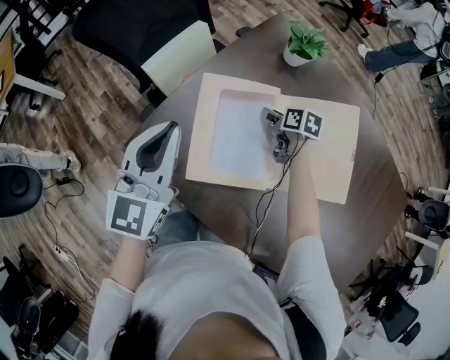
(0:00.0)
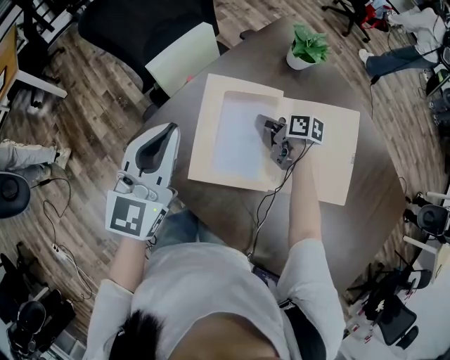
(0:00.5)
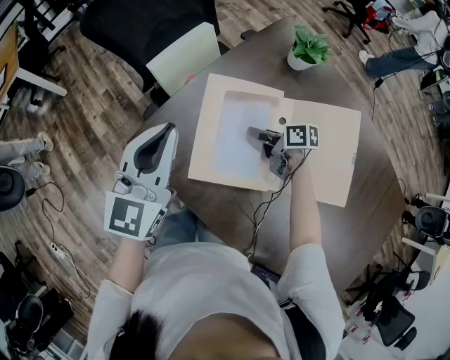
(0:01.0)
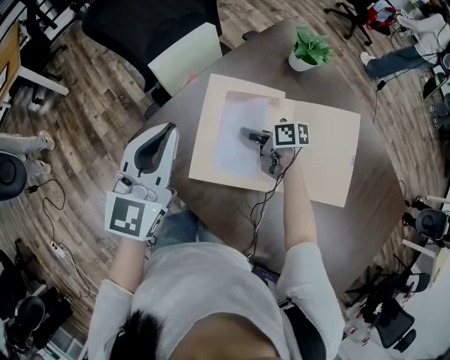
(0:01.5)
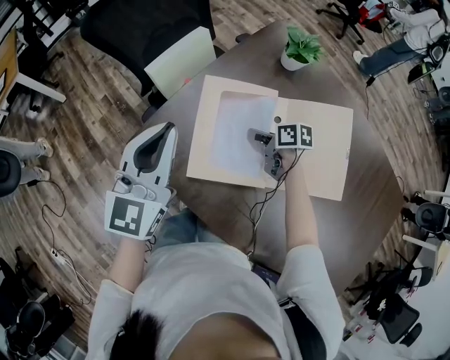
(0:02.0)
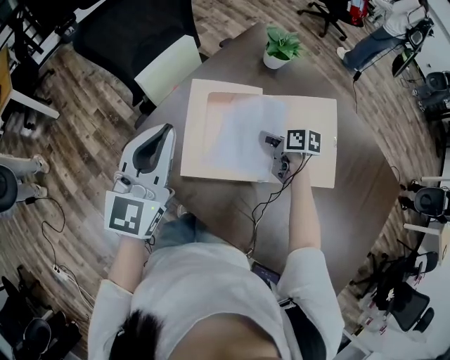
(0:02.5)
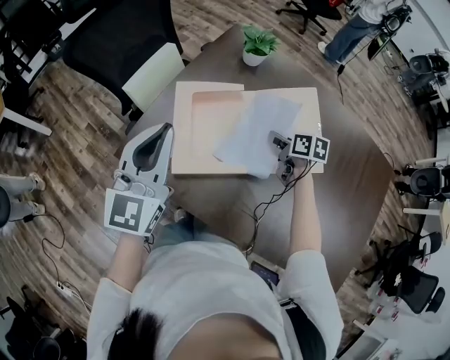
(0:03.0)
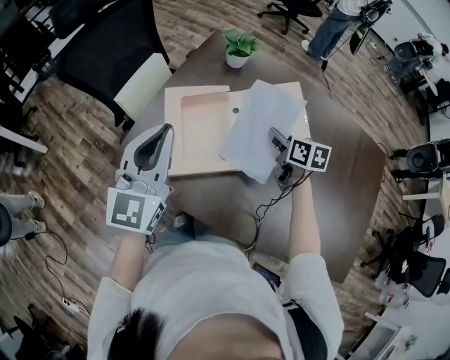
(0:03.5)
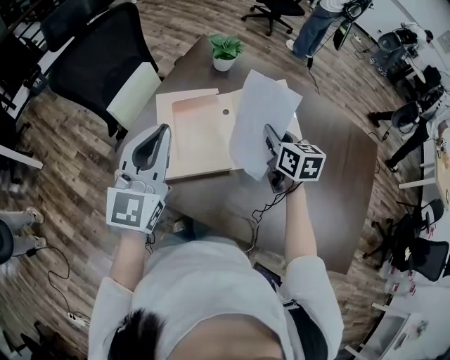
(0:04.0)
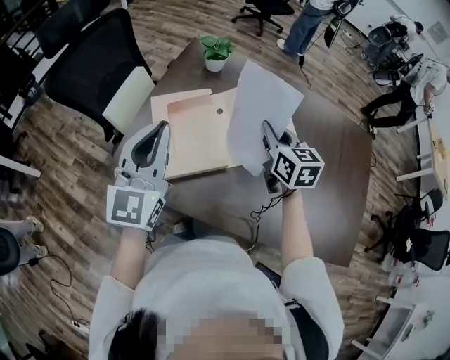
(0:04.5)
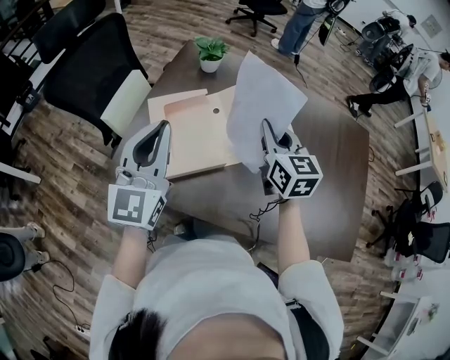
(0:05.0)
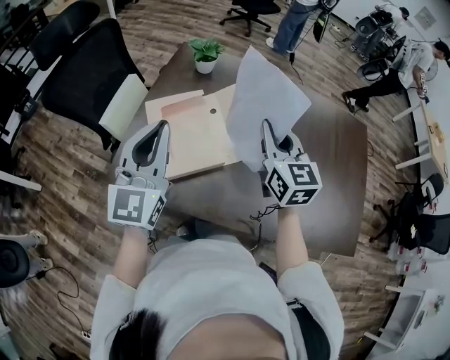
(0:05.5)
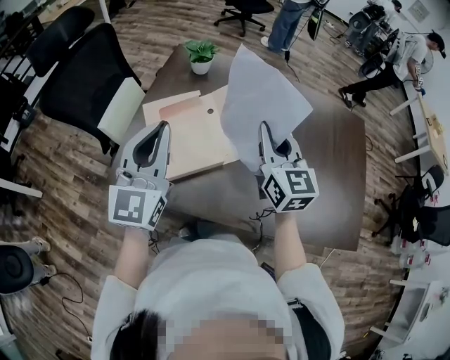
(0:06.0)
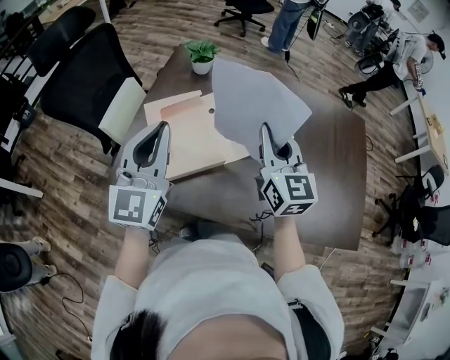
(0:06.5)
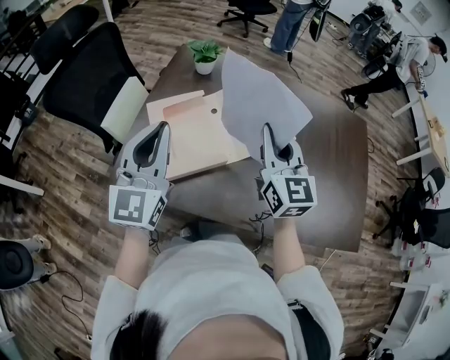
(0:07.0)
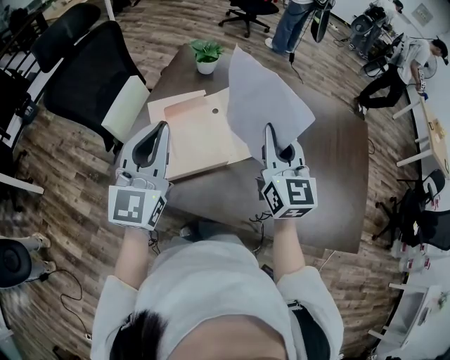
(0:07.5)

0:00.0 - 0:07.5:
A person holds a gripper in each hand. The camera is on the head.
0:00.0 - 0:02.0: The right gripper moves to the left and backward, about 10 cm, changes its angle by roughly 20 degrees, and closes its fingers.
0:02.0 - 0:04.0: The right gripper heads upward, covering about 20 cm, and swivels roughly 50 degrees; the left gripper shifts by approximately 10 cm.
0:04.0 - 0:05.5: The right gripper heads upward and backward, covering approximately 15 cm, and swivels roughly 30 degrees.
0:05.5 - 0:07.5: The grippers make only small movements.

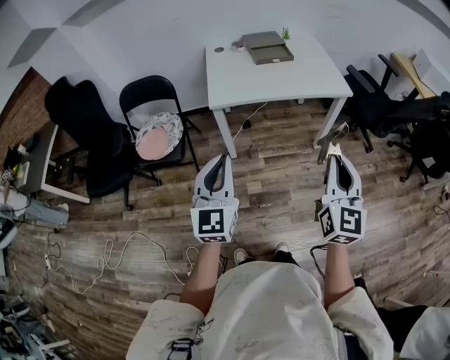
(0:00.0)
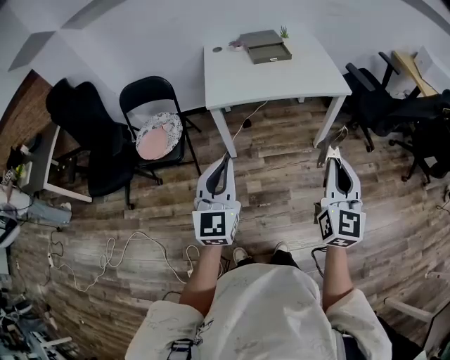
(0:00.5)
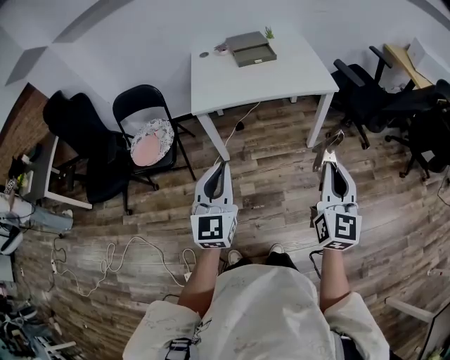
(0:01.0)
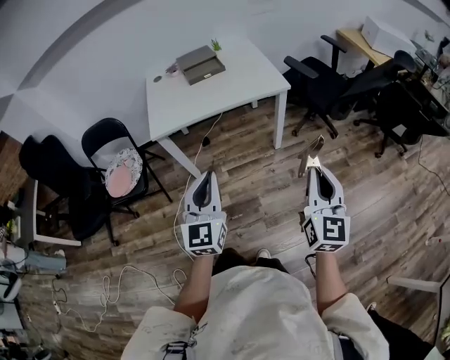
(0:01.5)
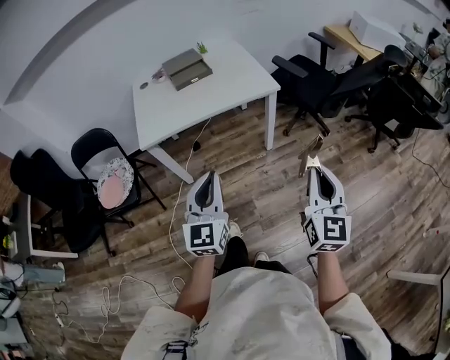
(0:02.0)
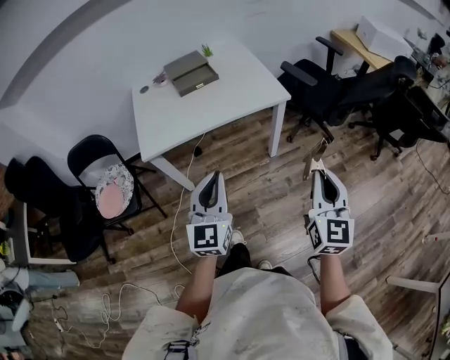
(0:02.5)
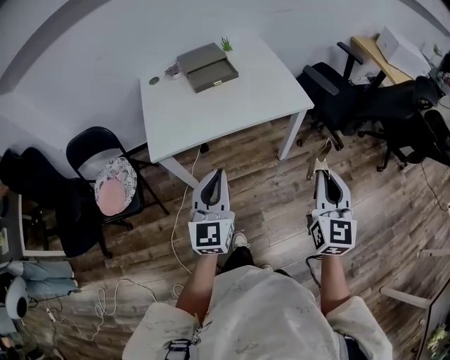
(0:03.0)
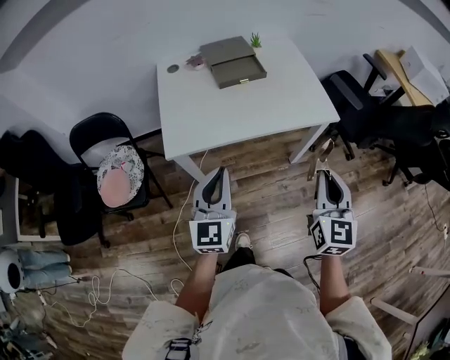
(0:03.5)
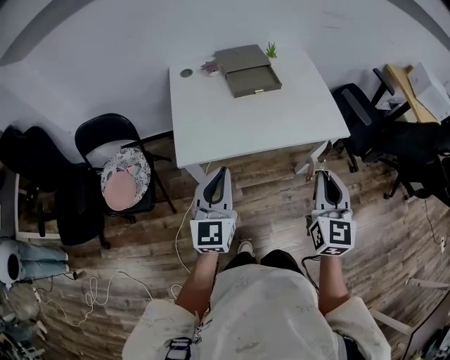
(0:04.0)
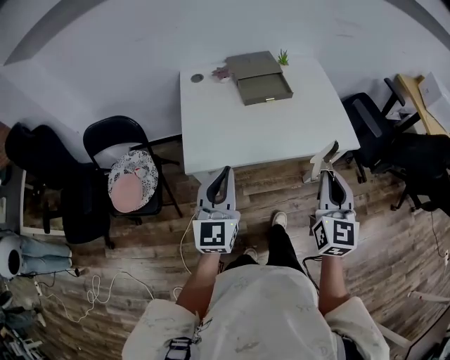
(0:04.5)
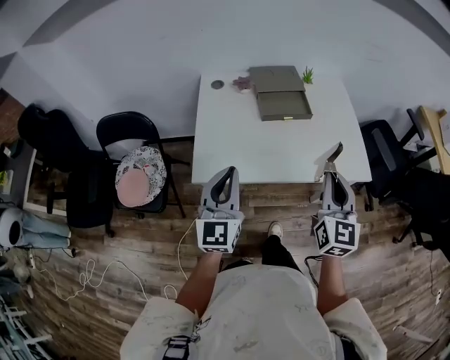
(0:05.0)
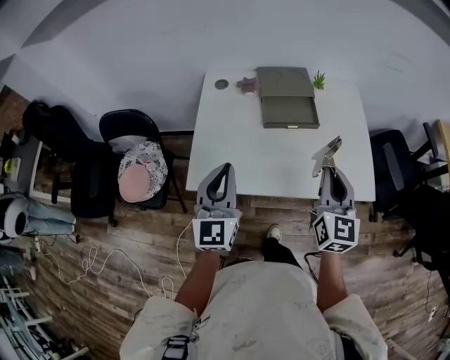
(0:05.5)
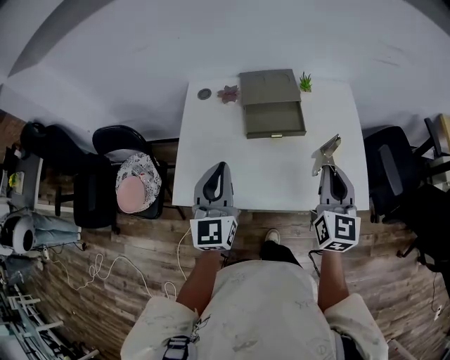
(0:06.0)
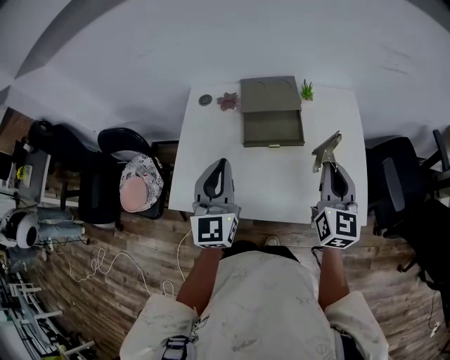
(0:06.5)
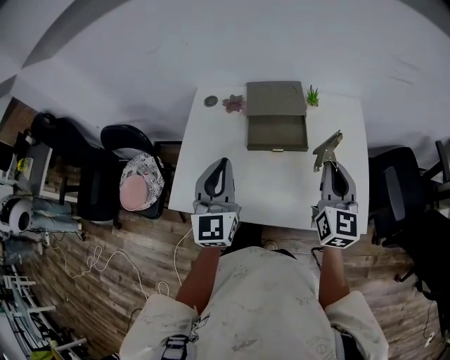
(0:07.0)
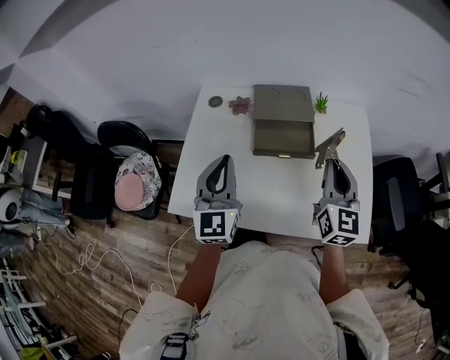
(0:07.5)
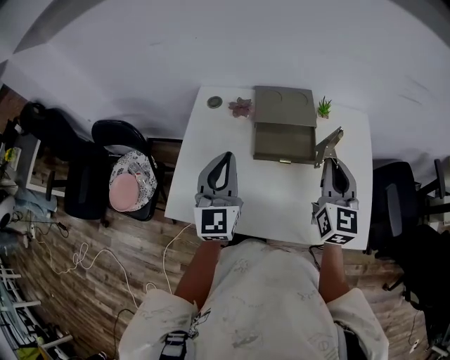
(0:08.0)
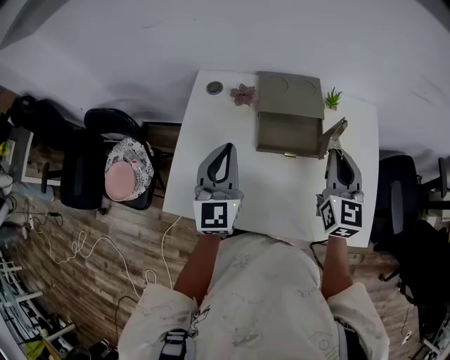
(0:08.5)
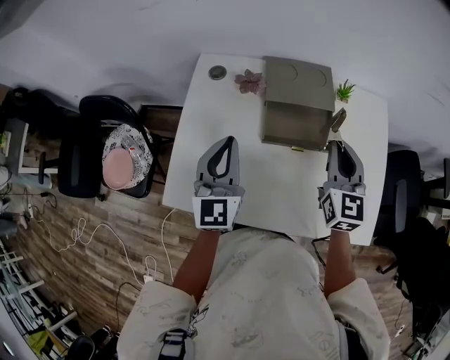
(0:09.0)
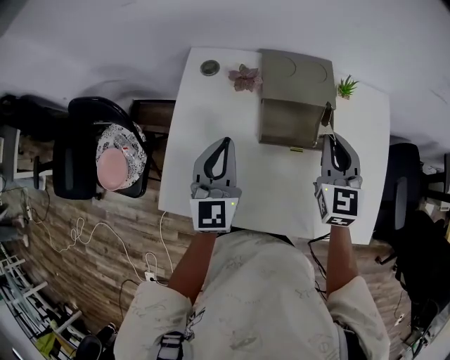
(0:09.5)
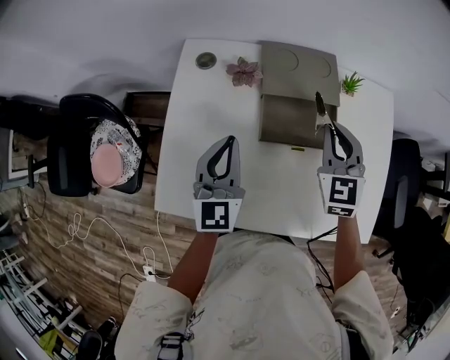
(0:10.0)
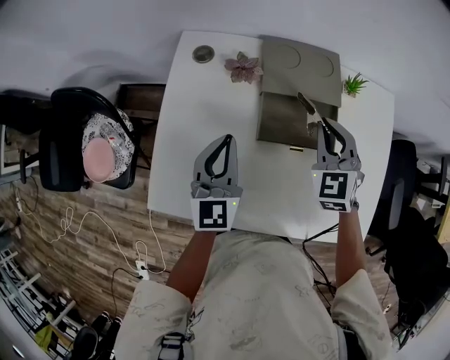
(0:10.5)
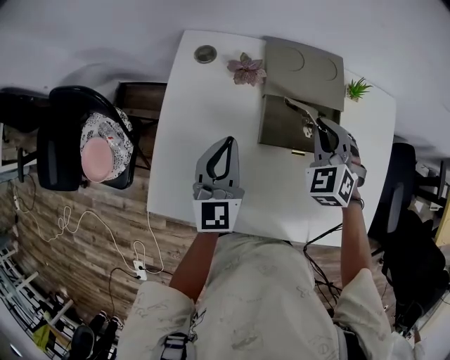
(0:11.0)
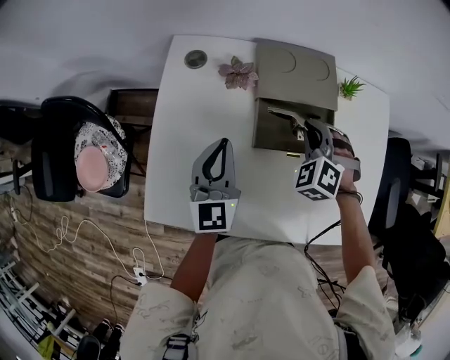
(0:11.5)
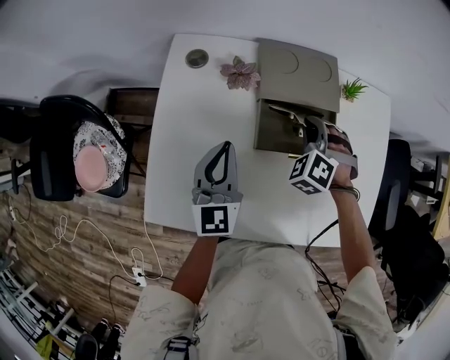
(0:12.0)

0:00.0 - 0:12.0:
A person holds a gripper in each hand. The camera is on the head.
0:00.0 - 0:02.0: The grippers both shift to the right by about 25 cm.
0:02.0 - 0:04.0: The right gripper goes about 40 cm forward and to the left, while the left gripper shifts about 35 cm to the left and forward.
0:04.0 - 0:06.0: The two grippers go approximately 25 cm forward.
0:06.0 - 0:08.0: The grippers both shift forward by about 10 cm.
0:08.0 - 0:10.0: The left gripper shifts about 10 cm downward and forward. Meanwhile the right gripper heads forward, downward and to the left, covering approximately 15 cm, and changes its angle by roughly 30 degrees.
0:10.0 - 0:12.0: The right gripper heads downward, covering about 10 cm, and rolls counterclockwise, seen from behind, by roughly 50 degrees. Meanwhile the left gripper moves about 5 cm.

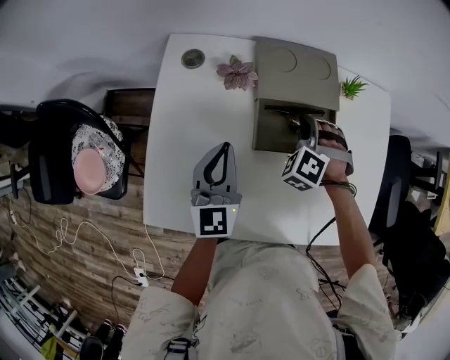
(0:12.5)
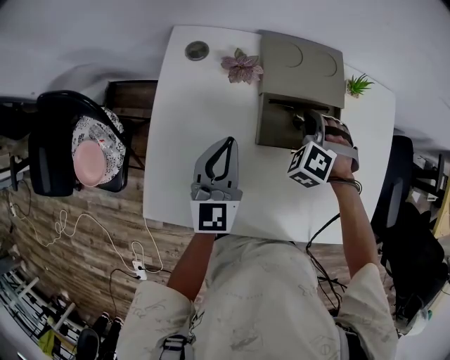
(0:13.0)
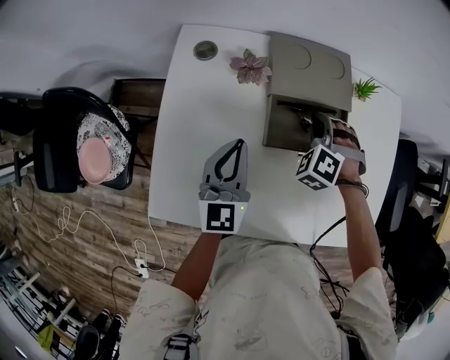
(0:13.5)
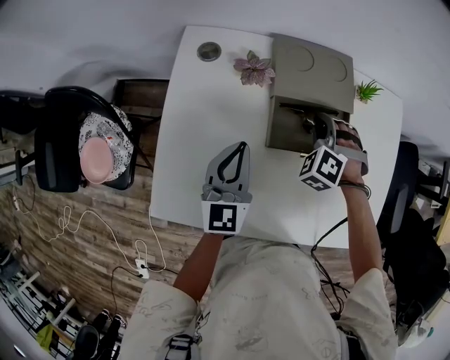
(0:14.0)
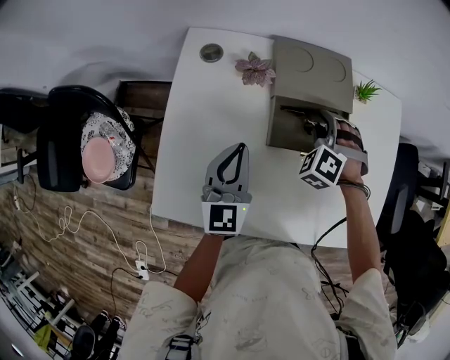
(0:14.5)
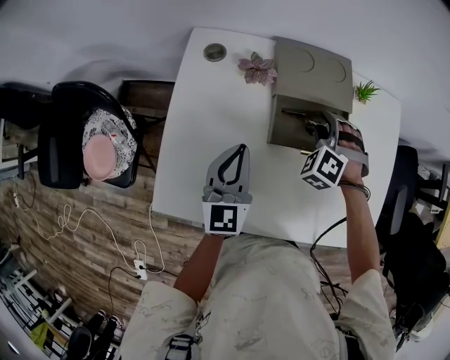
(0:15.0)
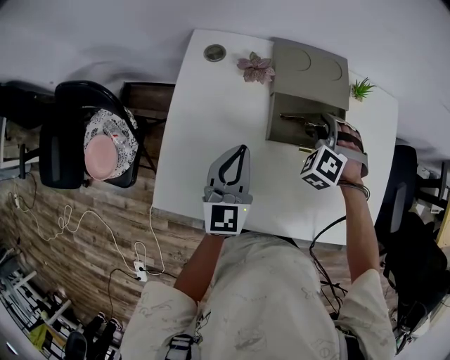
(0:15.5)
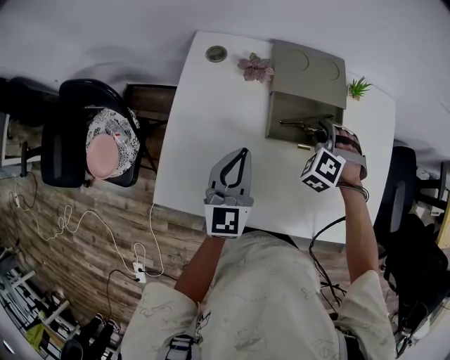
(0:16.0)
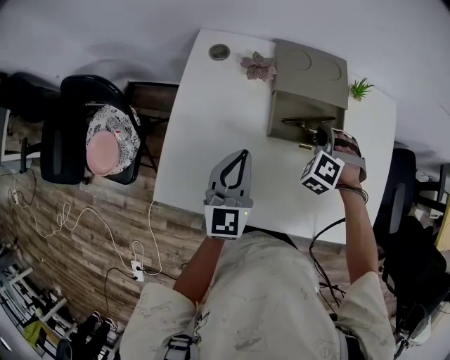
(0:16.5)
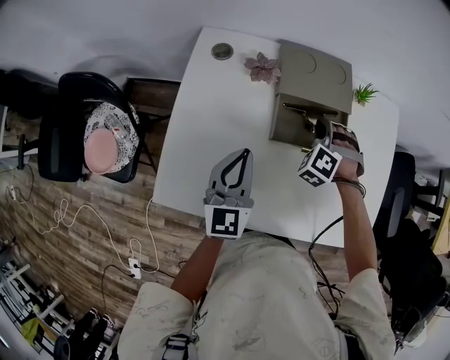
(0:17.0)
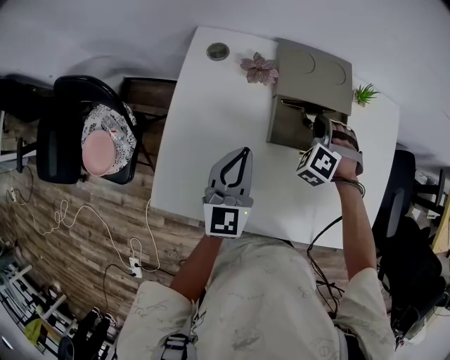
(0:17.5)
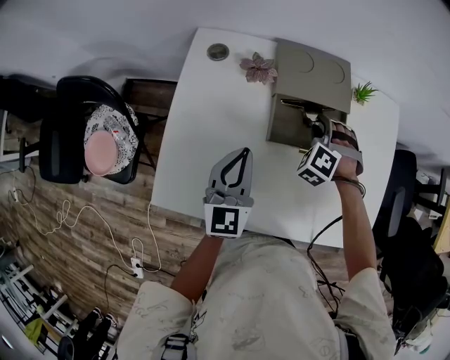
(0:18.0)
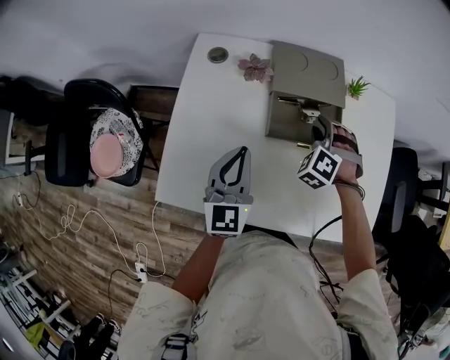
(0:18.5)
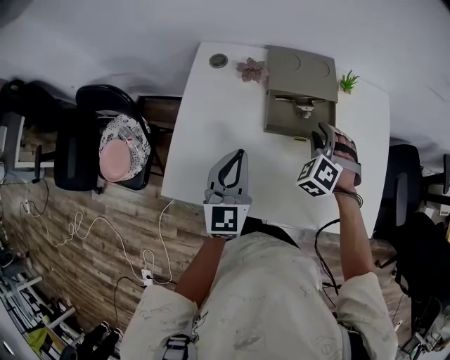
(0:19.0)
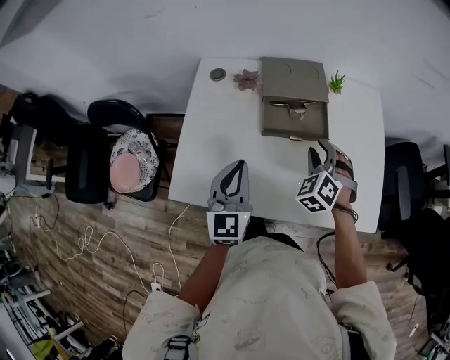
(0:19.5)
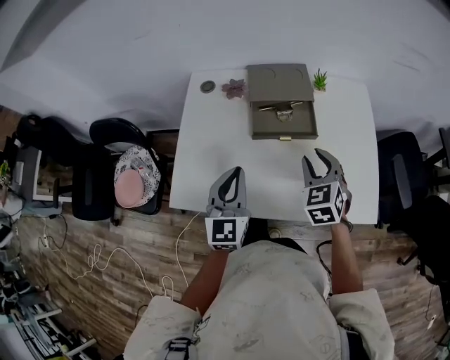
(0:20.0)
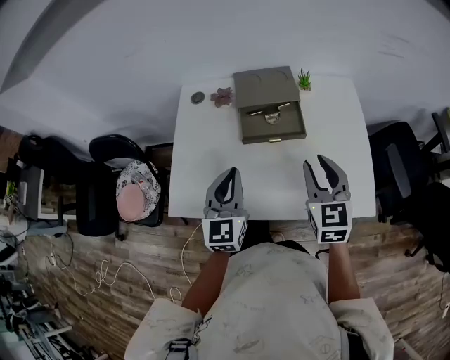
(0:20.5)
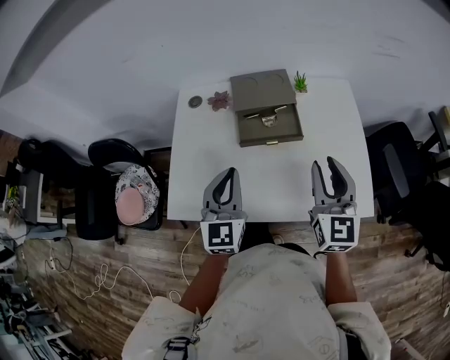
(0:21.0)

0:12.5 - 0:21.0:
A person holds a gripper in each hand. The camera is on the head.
0:12.5 - 0:14.5: The right gripper opens its fingers.
0:14.5 - 0:16.5: Both grippers move backward, roughly 5 cm.
0:16.5 - 0:19.0: The right gripper ends up some 5 cm from where it was, and opens its fingers.
0:19.0 - 0:21.0: The left gripper is displaced upward, to the right and backward by some 10 cm, while the right gripper shifts roughly 25 cm upward, backward and to the right, and rolls clockwise, seen from behind, by some 70 degrees.
